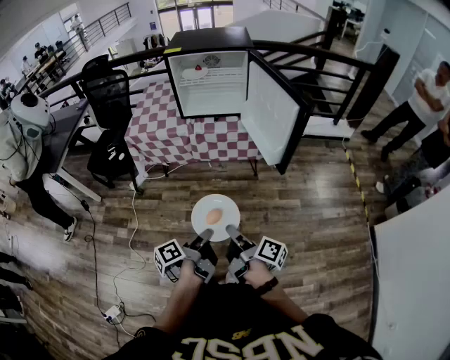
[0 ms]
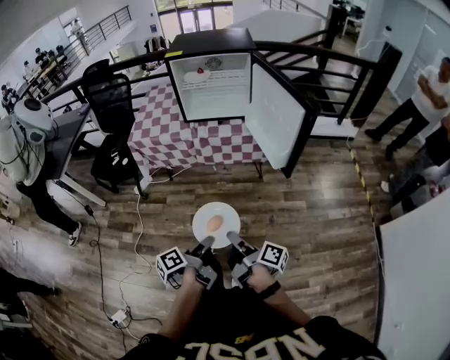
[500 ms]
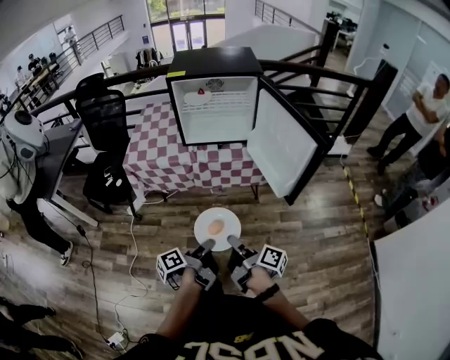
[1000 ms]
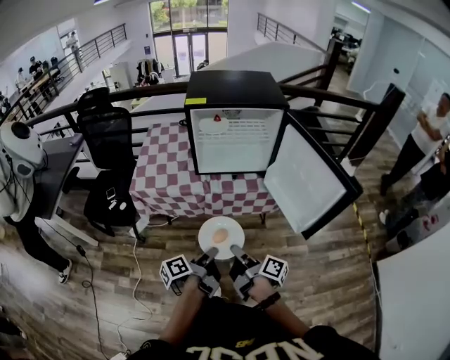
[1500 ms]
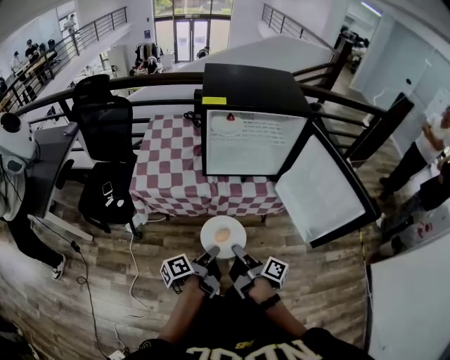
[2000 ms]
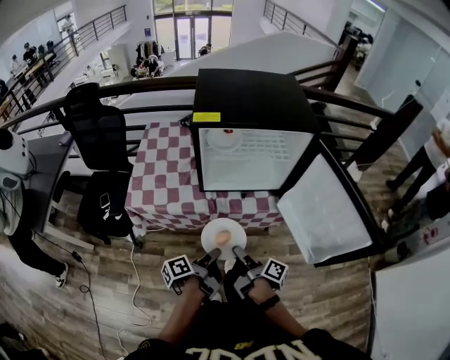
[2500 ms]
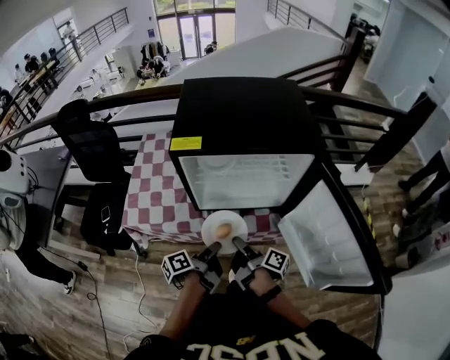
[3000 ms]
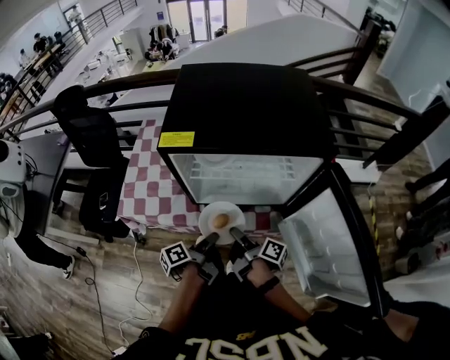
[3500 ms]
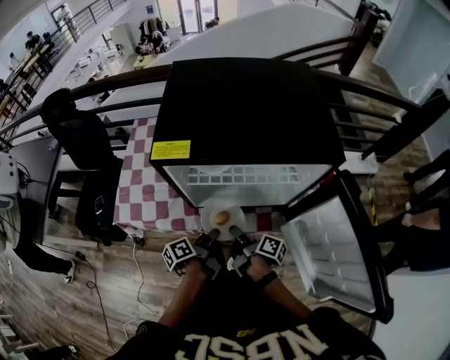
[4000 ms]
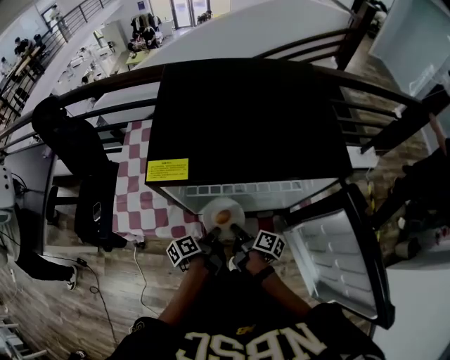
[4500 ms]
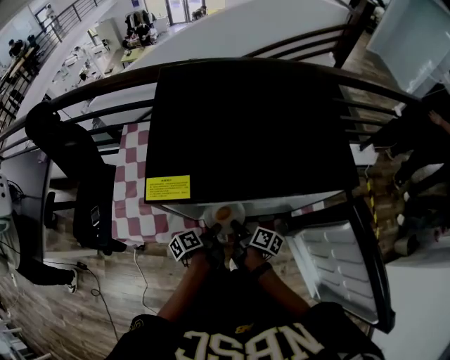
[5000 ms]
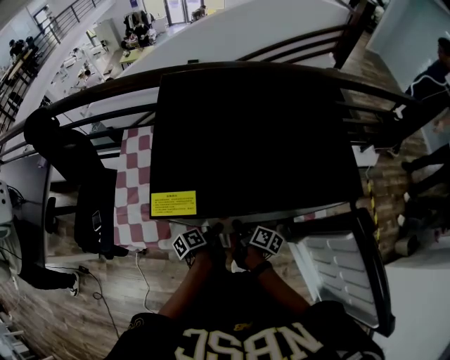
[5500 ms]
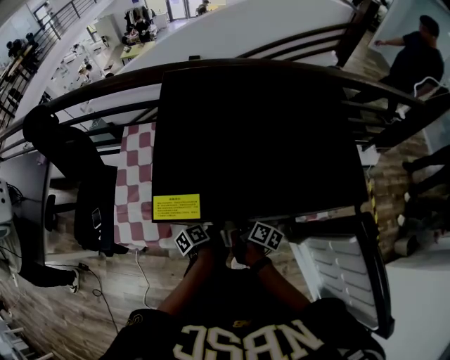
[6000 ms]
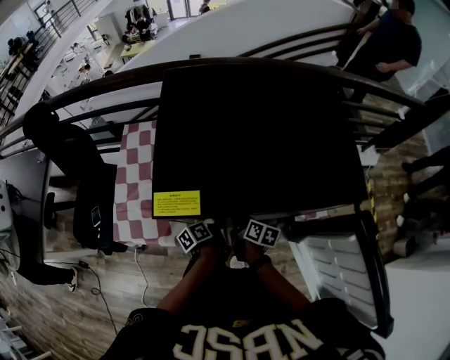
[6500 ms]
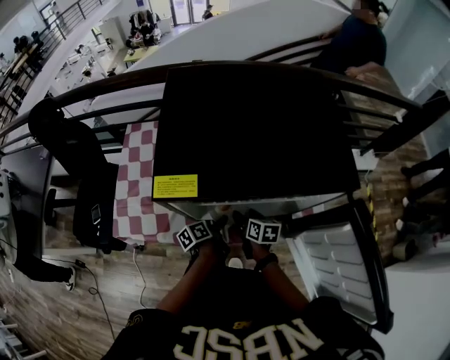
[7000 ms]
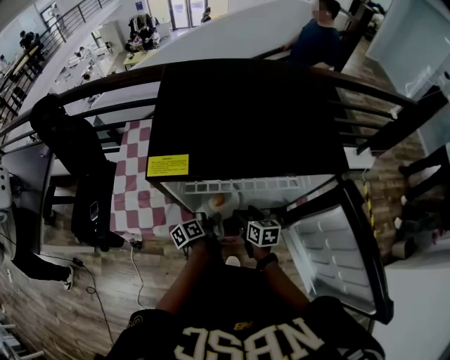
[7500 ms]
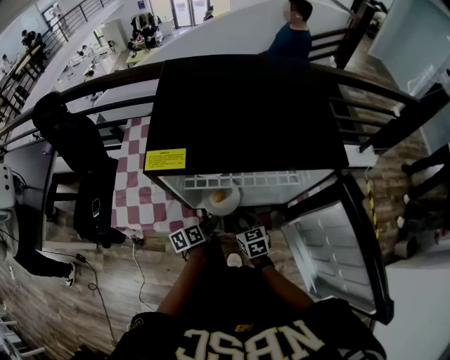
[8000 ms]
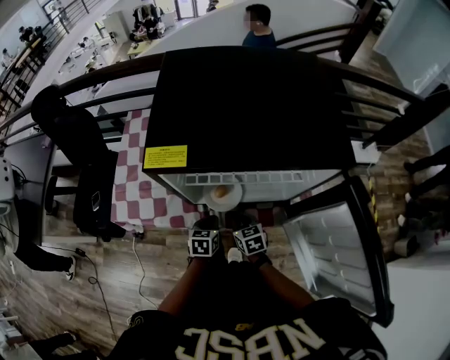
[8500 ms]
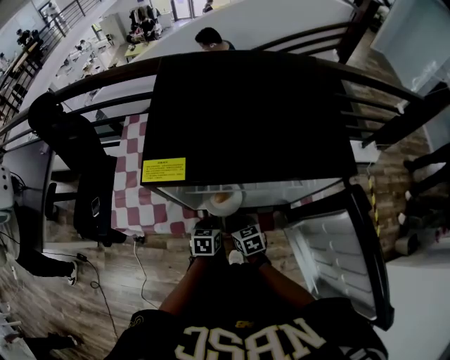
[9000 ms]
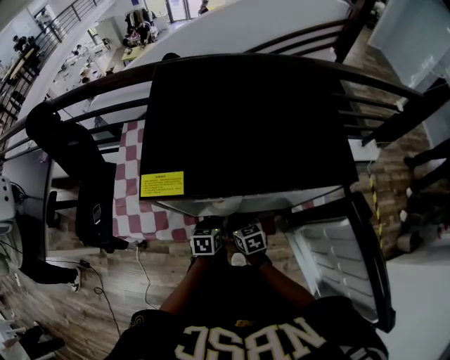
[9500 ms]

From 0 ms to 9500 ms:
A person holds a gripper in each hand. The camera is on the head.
From 0 ms to 2000 ms: The right gripper moves roughly 35 cm.
From 2000 ms to 4000 ms: The right gripper moves roughly 35 cm.
From 4000 ms to 5500 ms: The right gripper moves some 10 cm.
From 5500 ms to 7500 ms: The right gripper rolls counterclockwise, seen from behind, by some 50 degrees, and opens.
From 7500 ms to 9500 ms: The right gripper moves approximately 5 cm, and closes its fingers.

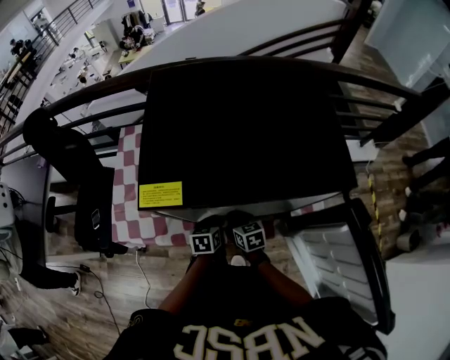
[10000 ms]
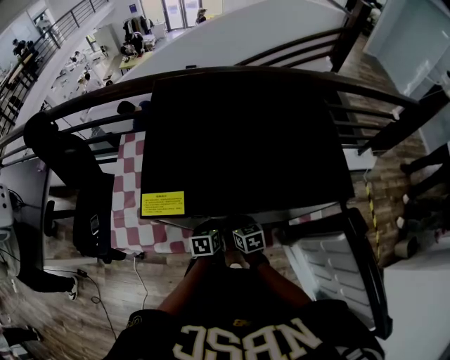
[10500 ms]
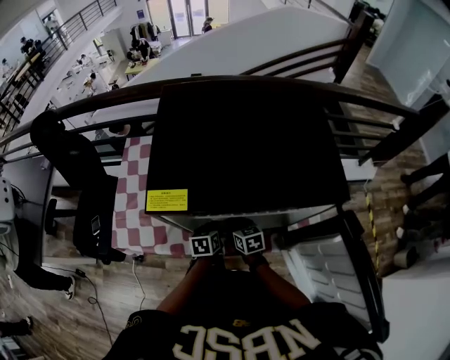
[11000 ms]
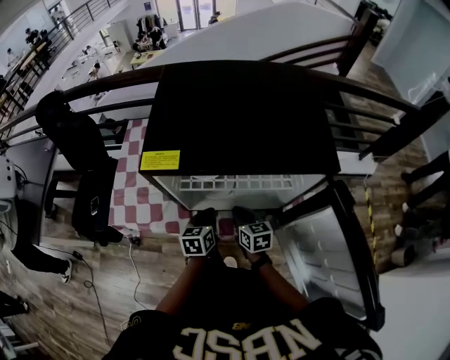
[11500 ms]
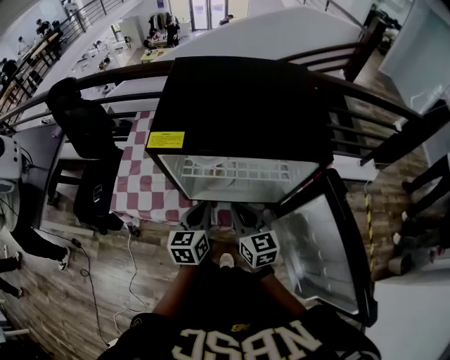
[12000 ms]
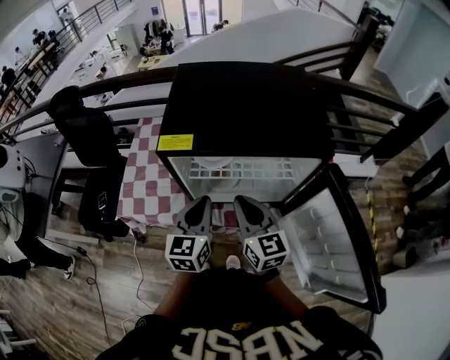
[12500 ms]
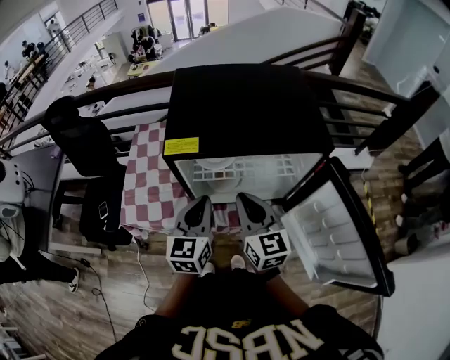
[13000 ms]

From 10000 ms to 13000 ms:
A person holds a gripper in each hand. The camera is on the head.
From 10000 ms to 11500 ms: The right gripper heads upward, covering roughly 5 cm.
From 11500 ms to 13000 ms: The right gripper is displaced upward by roughly 25 cm, and rotates some 30 degrees.

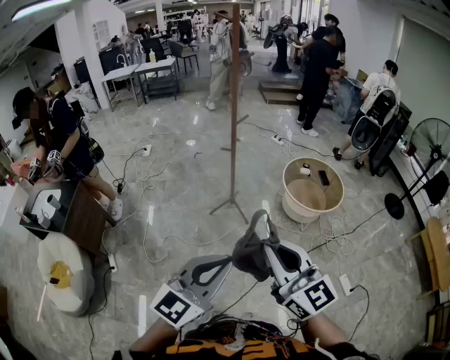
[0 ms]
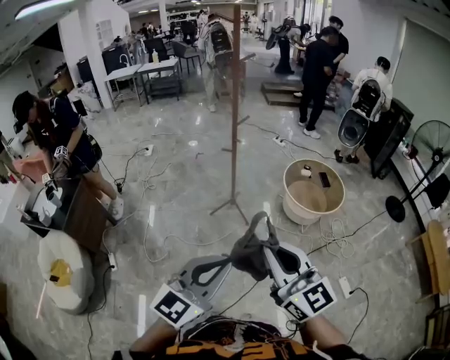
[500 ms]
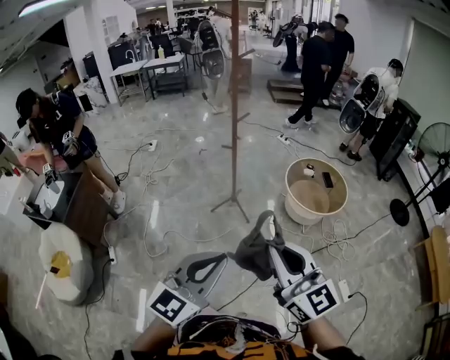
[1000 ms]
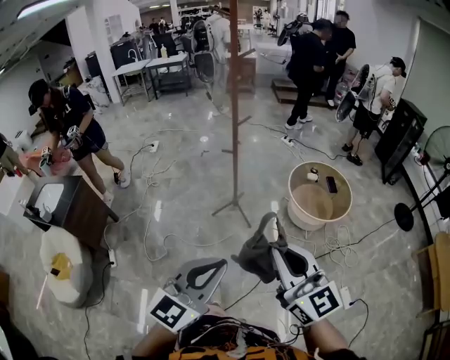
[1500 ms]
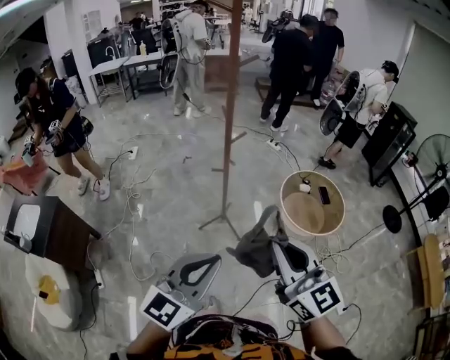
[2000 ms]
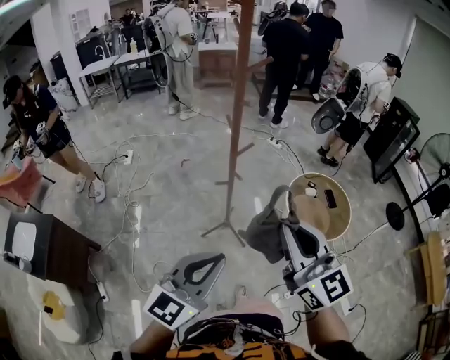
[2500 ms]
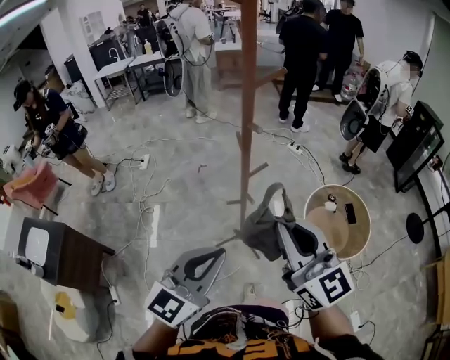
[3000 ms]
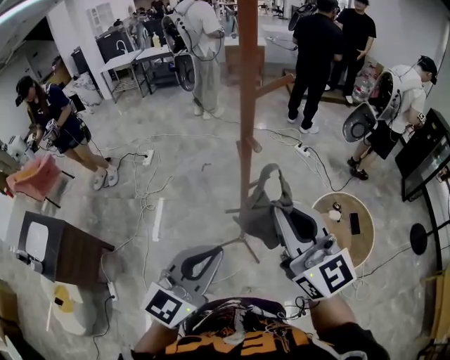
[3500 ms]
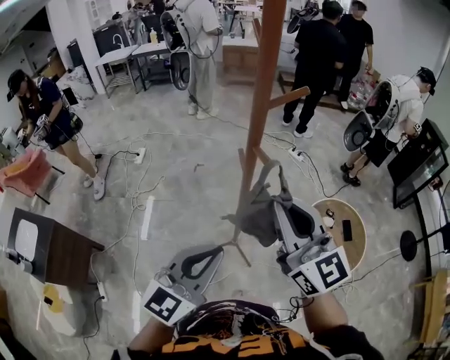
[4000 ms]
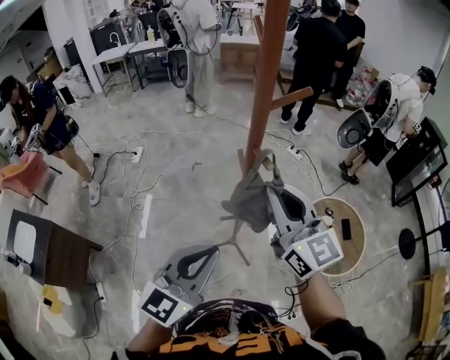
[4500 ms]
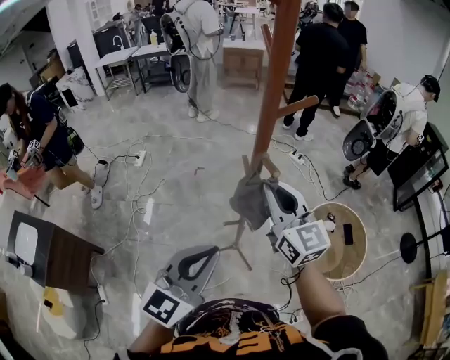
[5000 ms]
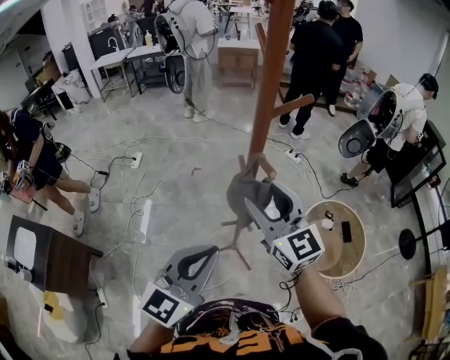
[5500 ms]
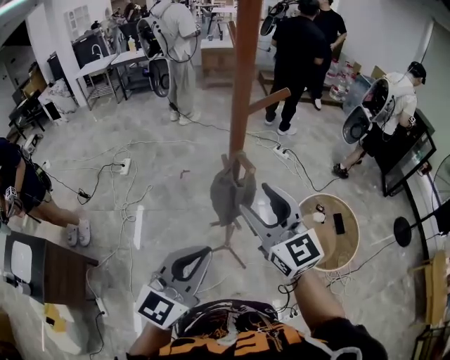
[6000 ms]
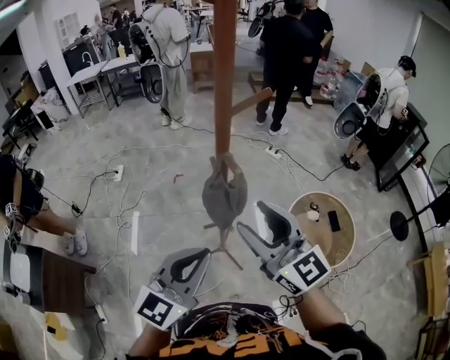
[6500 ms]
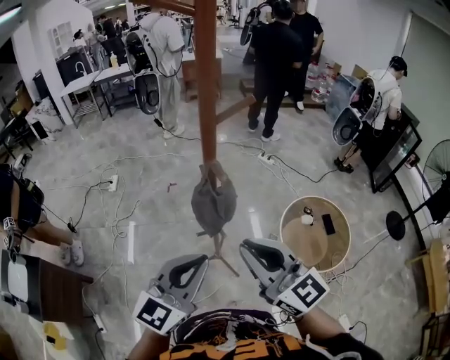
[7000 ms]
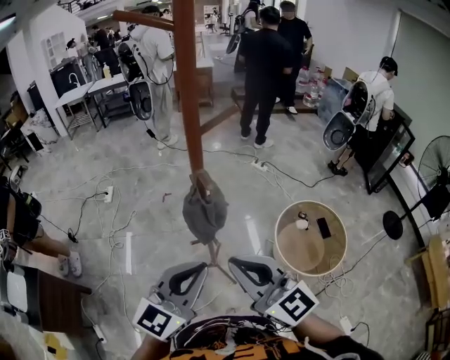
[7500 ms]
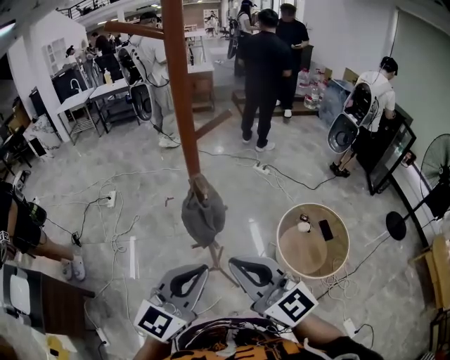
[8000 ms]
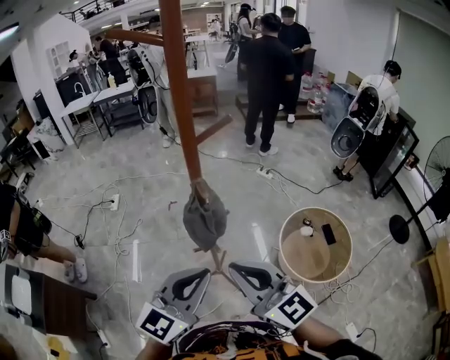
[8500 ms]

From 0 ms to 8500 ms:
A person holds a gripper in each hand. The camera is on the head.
From 0 ms to 2000 ms: The two grippers go some 25 cm forward.
From 2000 ms to 4000 ms: Both grippers move forward, roughly 40 cm.
From 4000 ms to 6500 ms: The right gripper reaches some 10 cm forward, then returns, and opens up.
From 6500 ms to 8500 ms: The right gripper is displaced backward by approximately 5 cm, and closes.

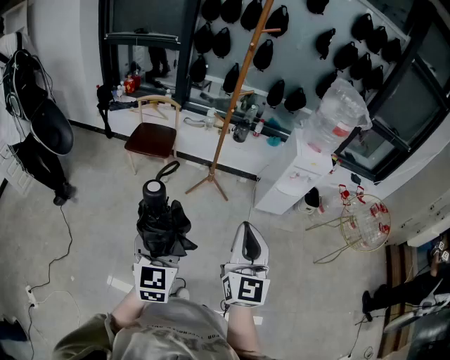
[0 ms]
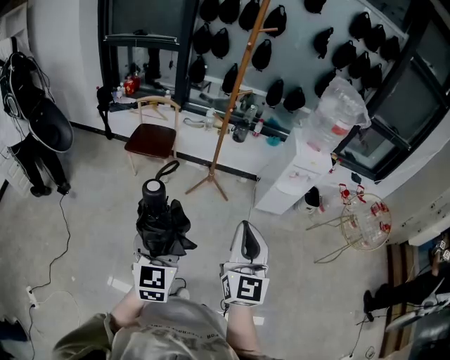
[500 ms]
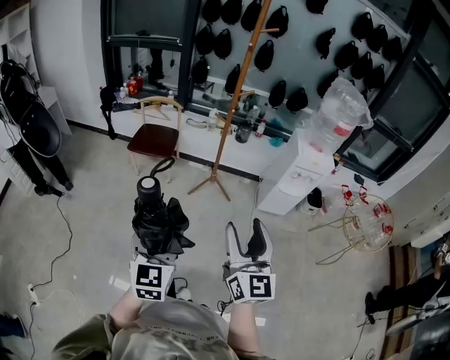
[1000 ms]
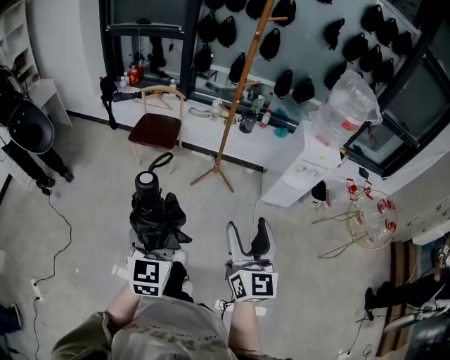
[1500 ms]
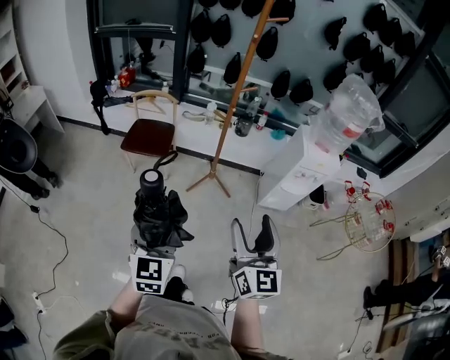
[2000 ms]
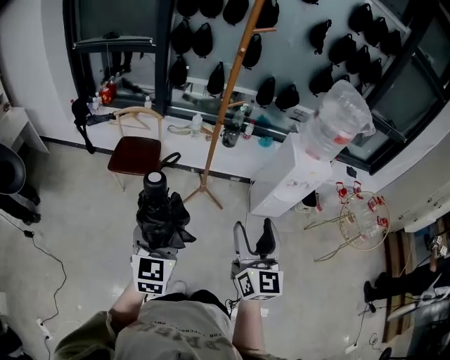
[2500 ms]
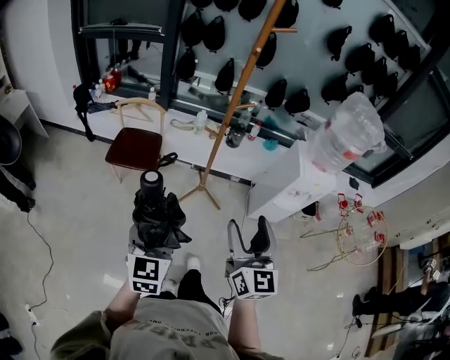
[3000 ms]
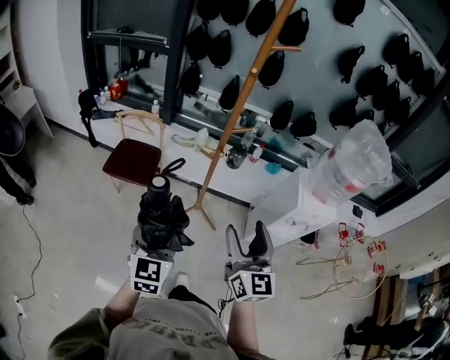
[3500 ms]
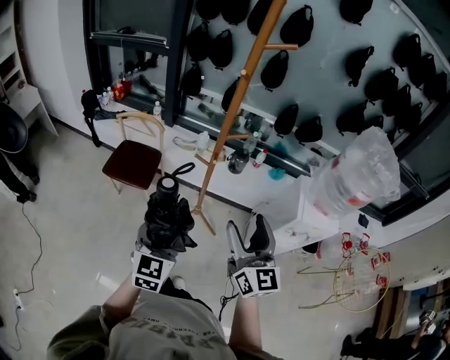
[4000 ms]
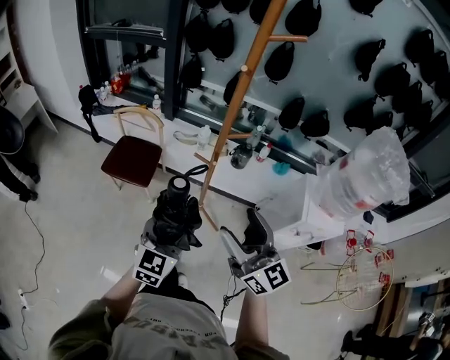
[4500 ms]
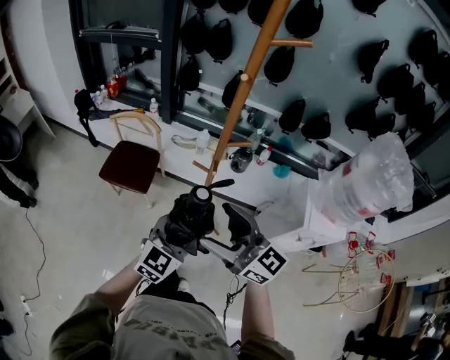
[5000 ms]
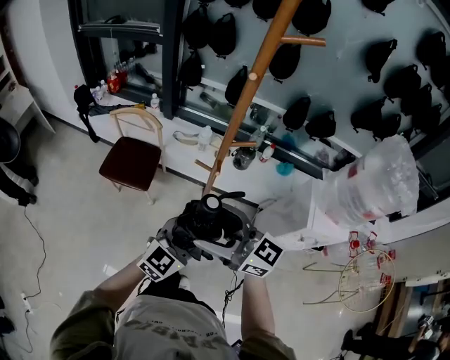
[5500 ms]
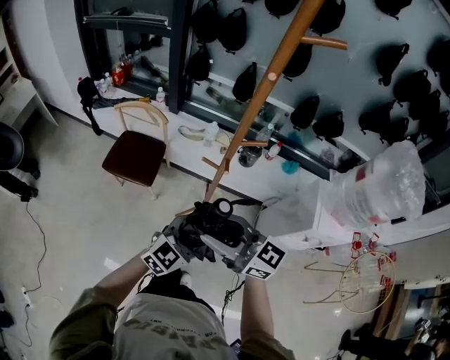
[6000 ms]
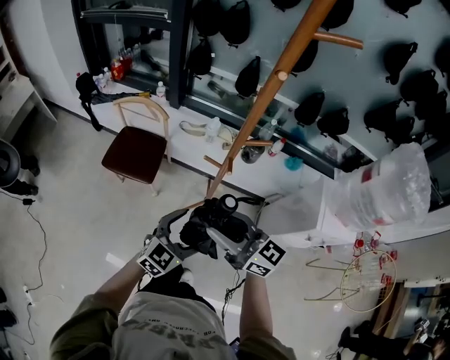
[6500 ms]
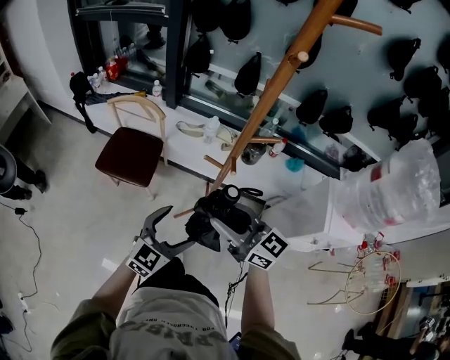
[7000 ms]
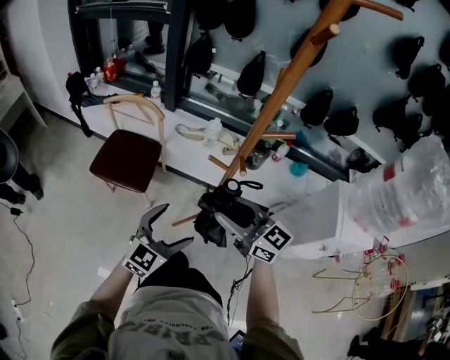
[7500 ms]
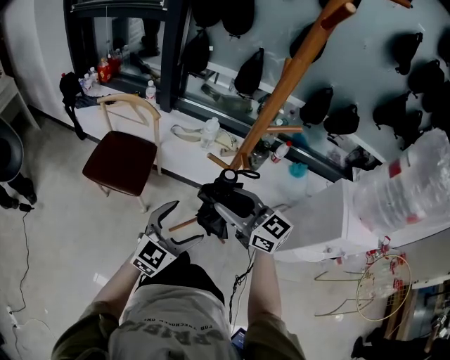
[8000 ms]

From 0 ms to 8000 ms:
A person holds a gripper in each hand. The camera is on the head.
From 0 ms to 2000 ms: The grippers both shift forward by approximately 10 cm. The right gripper opens its fingers.
From 2000 ms to 4000 ms: The left gripper moves forward and to the right, some 30 cm, while the right gripper moves forward, some 30 cm.
From 4000 ms to 6000 ms: The left gripper goes some 15 cm to the right, forward and downward, and rotates approximately 40 degrees, while the right gripper heads to the left and forward, covering some 15 cm, changes its angle by approximately 50 degrees, and closes.
From 6000 ms to 8000 ms: Both grippers travel together downward and forward, about 25 cm.
